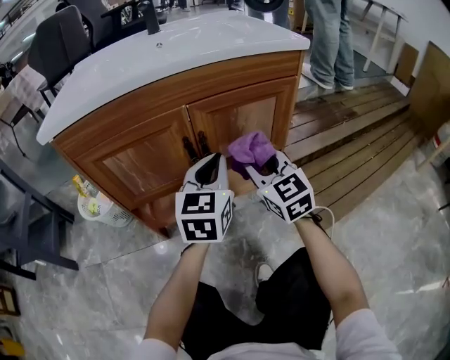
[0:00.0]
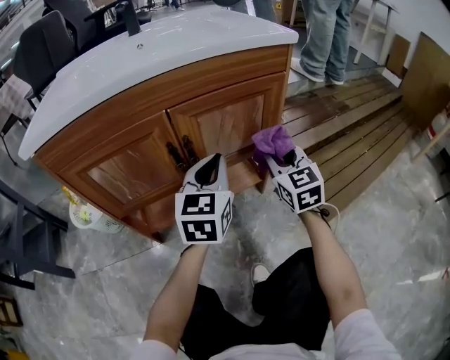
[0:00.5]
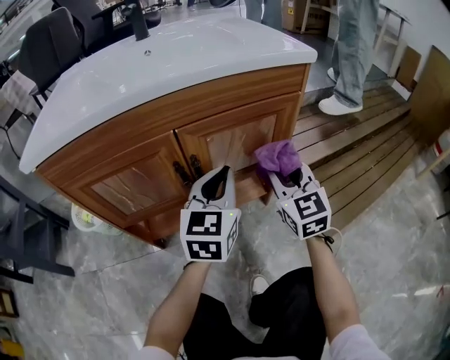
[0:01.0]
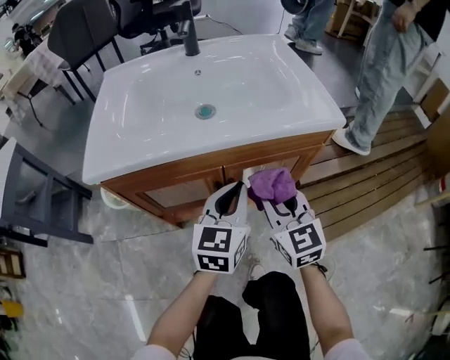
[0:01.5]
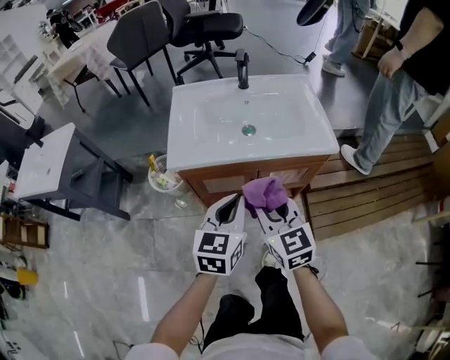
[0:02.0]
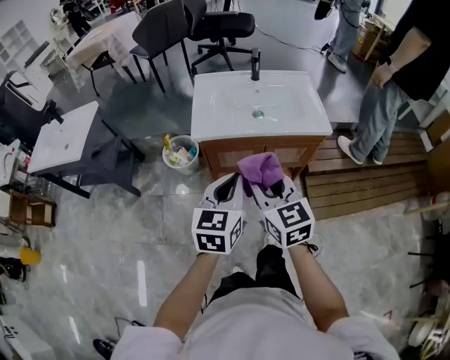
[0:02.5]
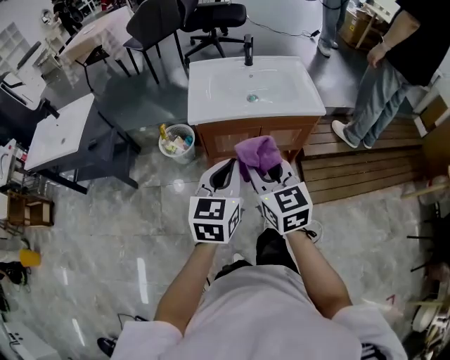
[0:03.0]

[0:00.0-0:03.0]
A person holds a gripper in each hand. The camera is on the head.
0.0 to 1.5 s: The two grippers go approximately 10 cm upward.
1.5 to 3.0 s: Both grippers move upward, backward and to the left, approximately 40 cm.

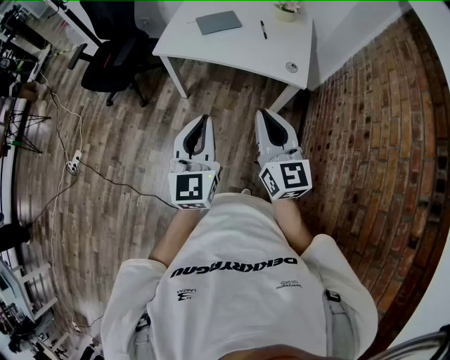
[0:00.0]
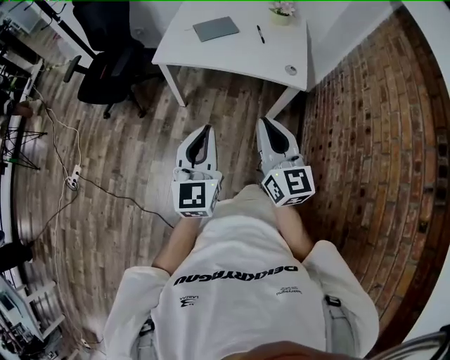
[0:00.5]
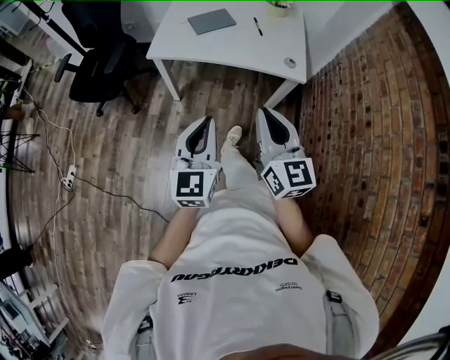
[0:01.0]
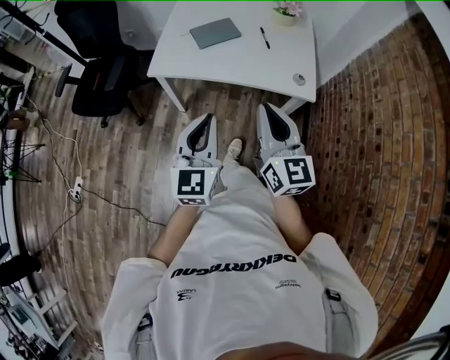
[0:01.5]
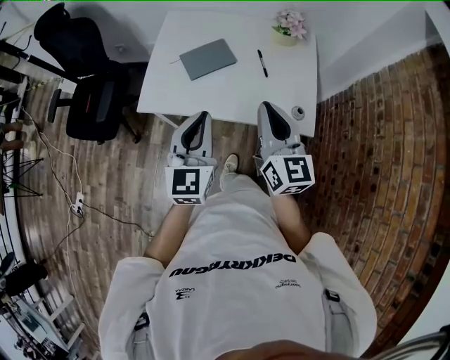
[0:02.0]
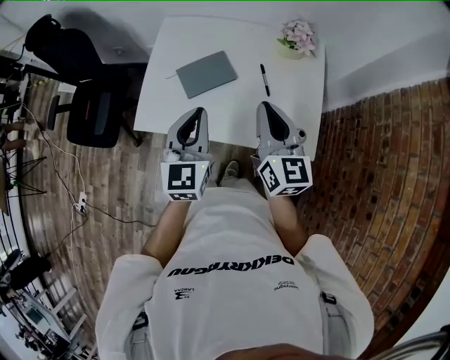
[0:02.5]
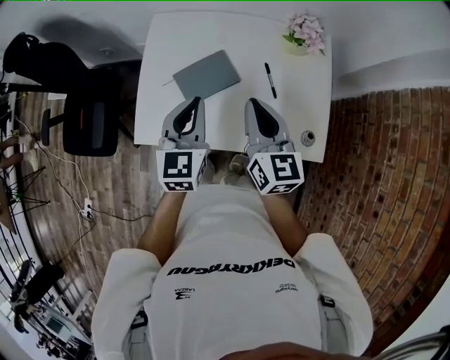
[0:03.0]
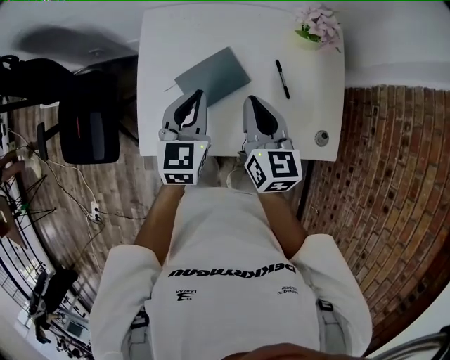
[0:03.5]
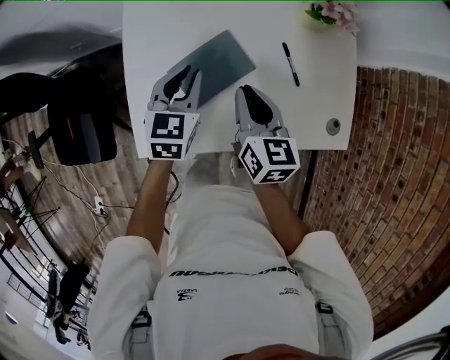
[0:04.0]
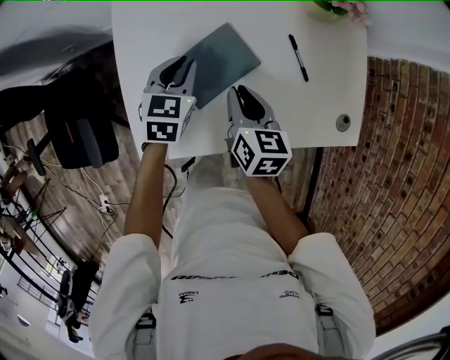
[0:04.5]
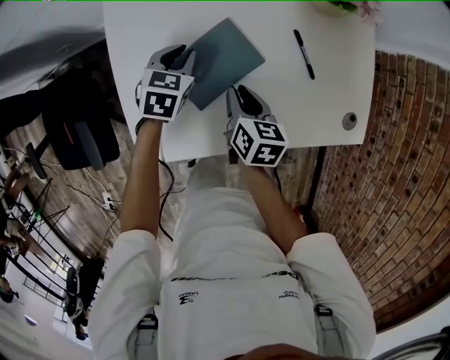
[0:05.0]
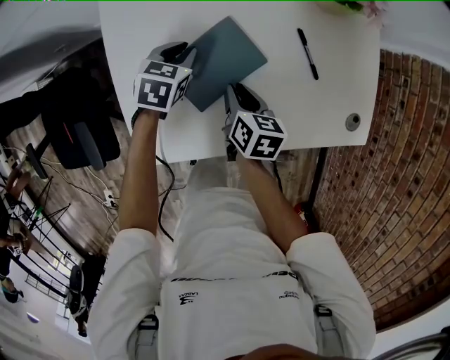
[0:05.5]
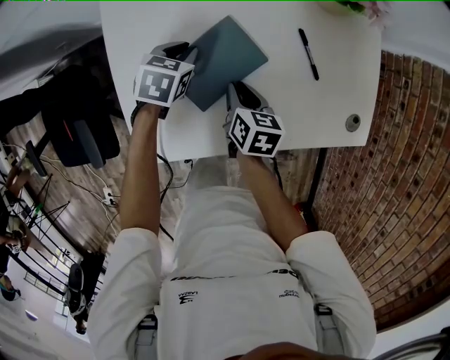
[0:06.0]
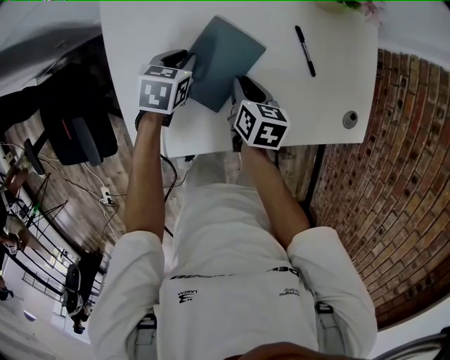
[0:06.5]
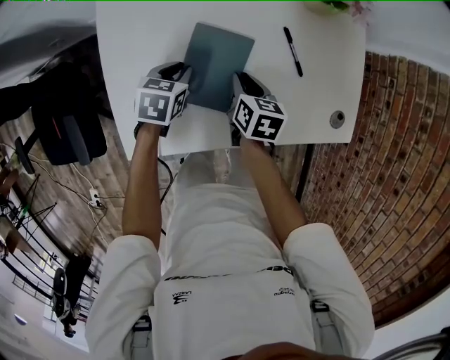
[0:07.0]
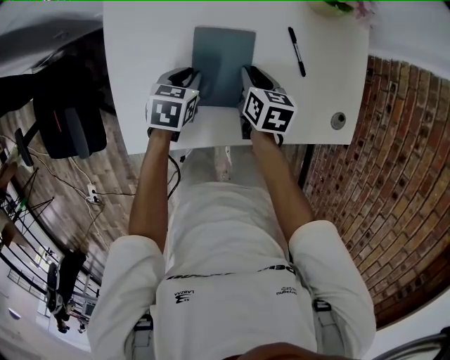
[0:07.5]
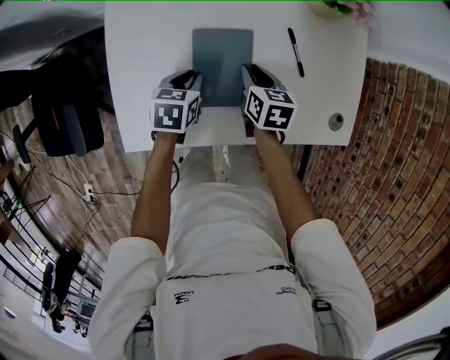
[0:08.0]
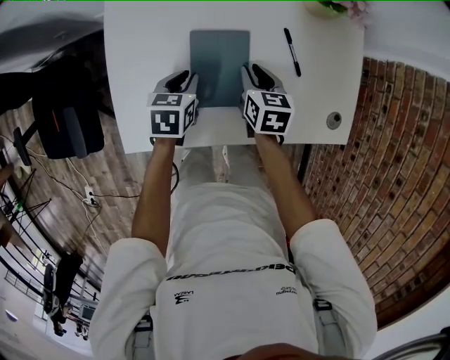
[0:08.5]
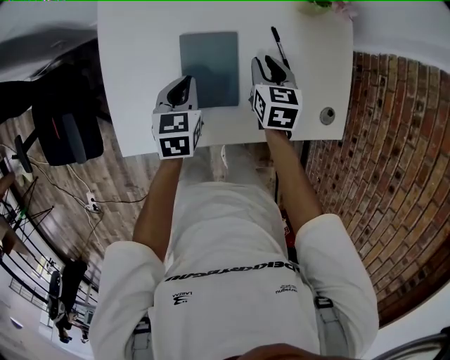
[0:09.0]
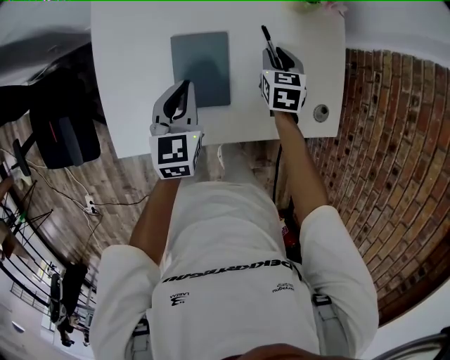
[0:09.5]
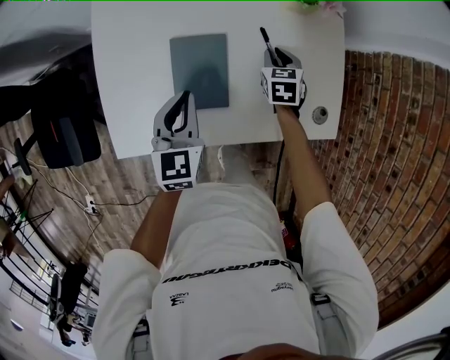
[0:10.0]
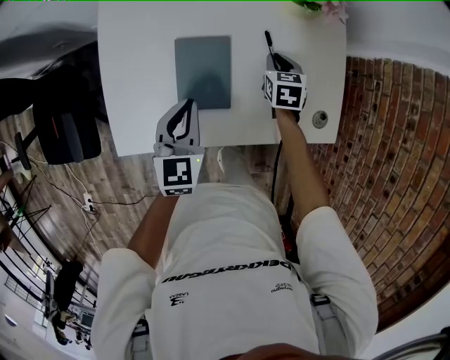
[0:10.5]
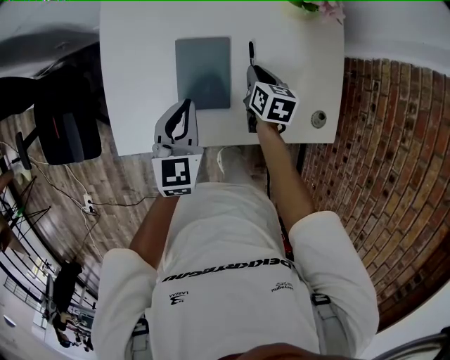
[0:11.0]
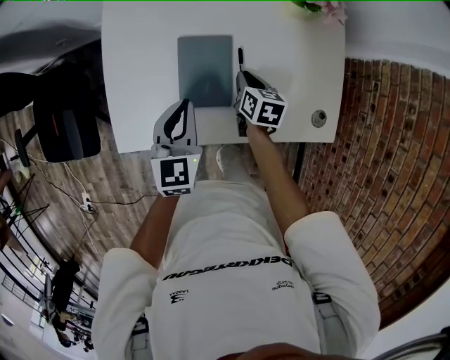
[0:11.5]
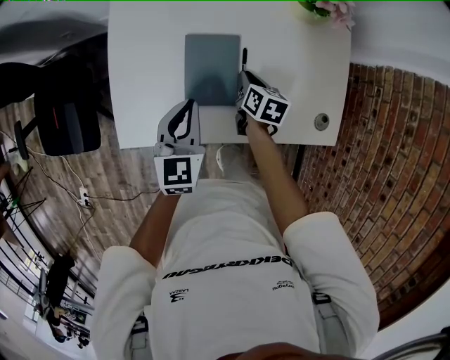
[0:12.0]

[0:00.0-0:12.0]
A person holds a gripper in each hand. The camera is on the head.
0.0 to 2.0 s: Both grippers travel together forward, some 35 cm.
2.0 to 4.0 s: The grippers both shift forward and downward by about 40 cm. The left gripper rotates roughly 30 degrees; the right gripper swivels about 30 degrees.
4.0 to 6.0 s: Both grippers move downward, some 15 cm. The left gripper changes its angle by roughly 30 degrees; the right gripper changes its angle by approximately 30 degrees.
6.0 to 8.0 s: The left gripper travels backward by approximately 10 cm. The right gripper travels to the right by approximately 5 cm.
8.0 to 10.0 s: The left gripper is displaced upward by about 15 cm, and changes its angle by roughly 30 degrees, while the right gripper heads to the right and forward, covering roughly 15 cm, and swivels about 30 degrees.
10.0 to 12.0 s: The right gripper is displaced to the left and backward by roughly 10 cm, and changes its angle by about 40 degrees.

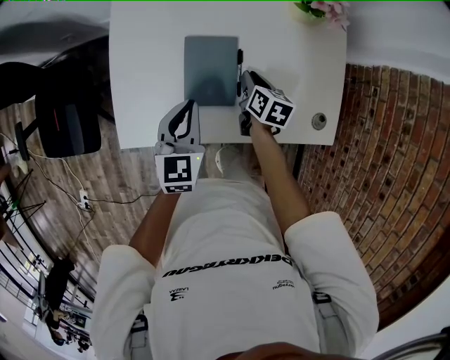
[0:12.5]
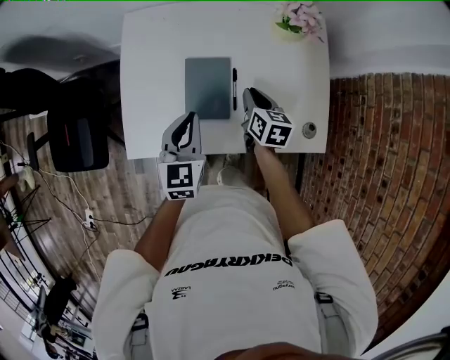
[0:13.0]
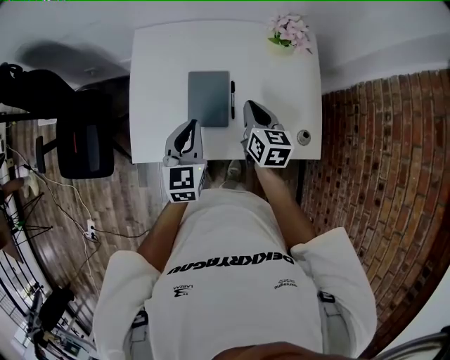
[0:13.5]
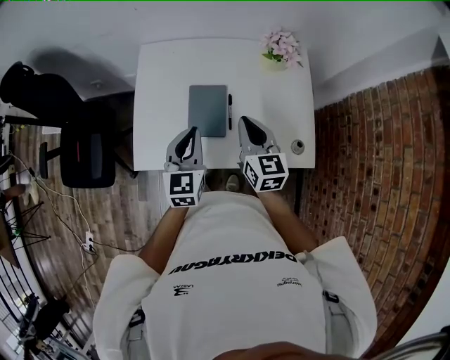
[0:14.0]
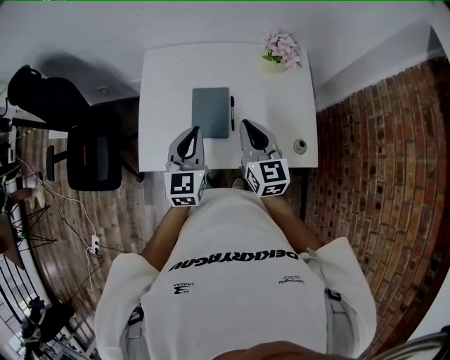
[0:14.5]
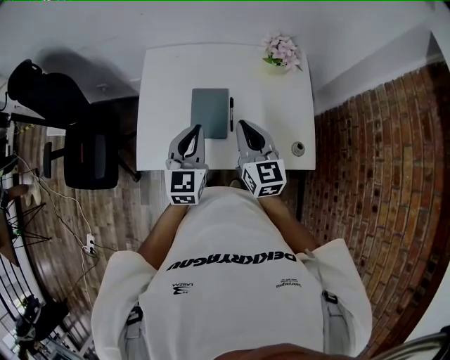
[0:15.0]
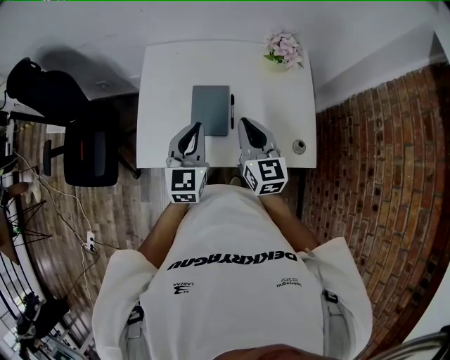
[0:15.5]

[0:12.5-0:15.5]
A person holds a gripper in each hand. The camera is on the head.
12.5 to 14.0 s: The left gripper moves upward and backward, approximately 15 cm. Meanwhile the right gripper moves upward, some 25 cm, and rotates about 40 degrees.
14.0 to 15.5 s: The grippers make only small movements.

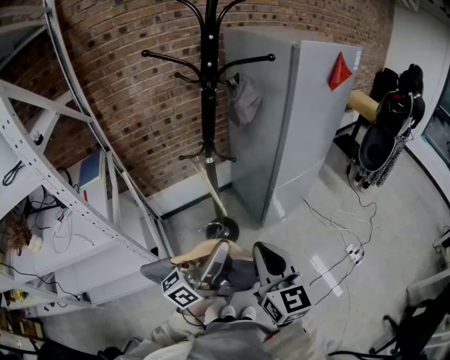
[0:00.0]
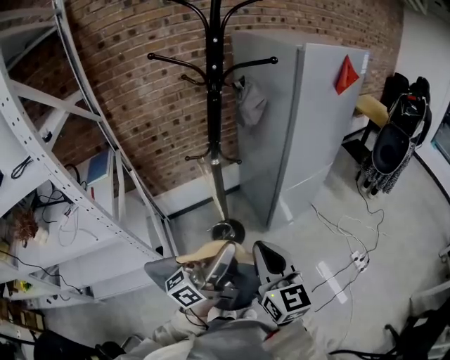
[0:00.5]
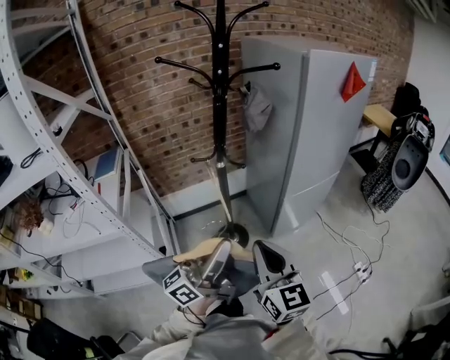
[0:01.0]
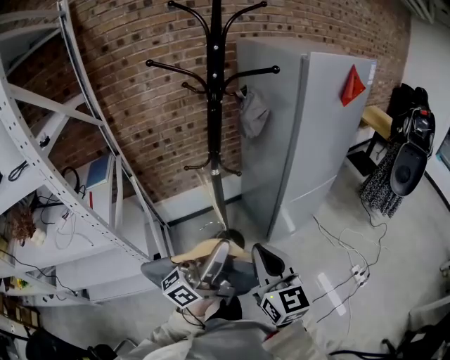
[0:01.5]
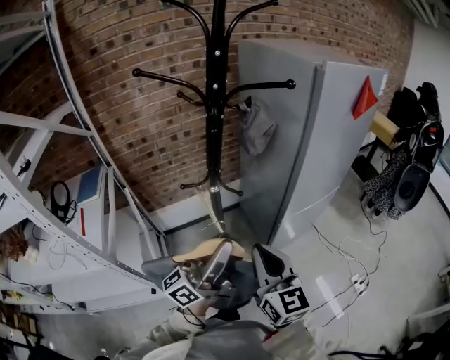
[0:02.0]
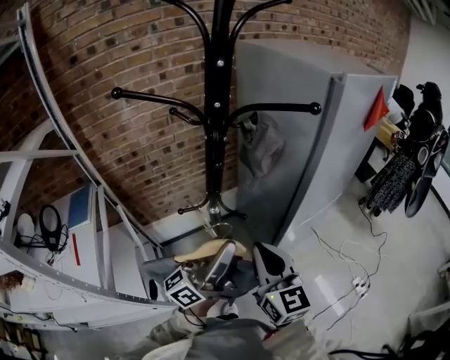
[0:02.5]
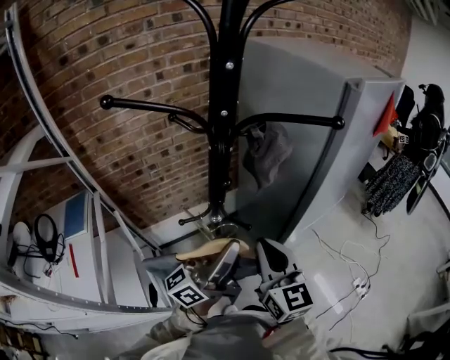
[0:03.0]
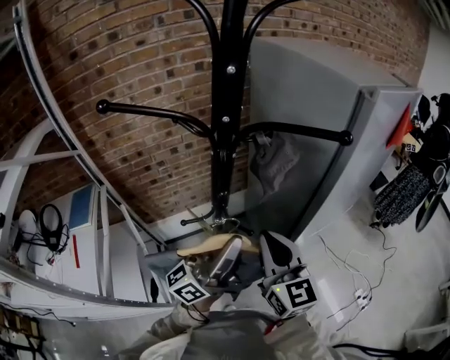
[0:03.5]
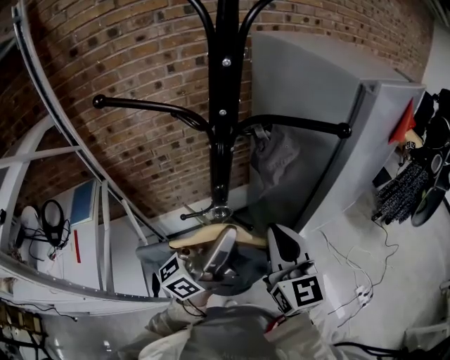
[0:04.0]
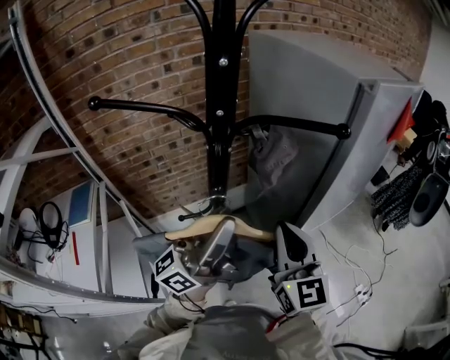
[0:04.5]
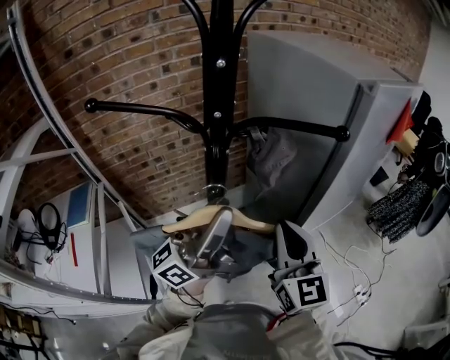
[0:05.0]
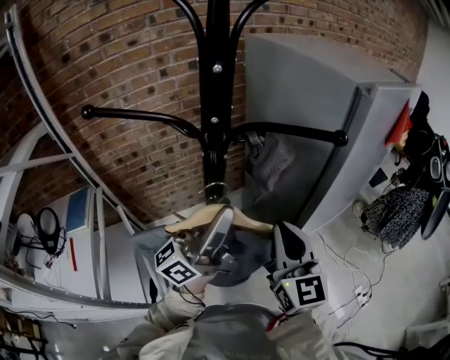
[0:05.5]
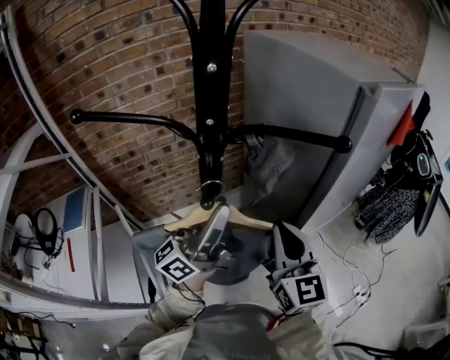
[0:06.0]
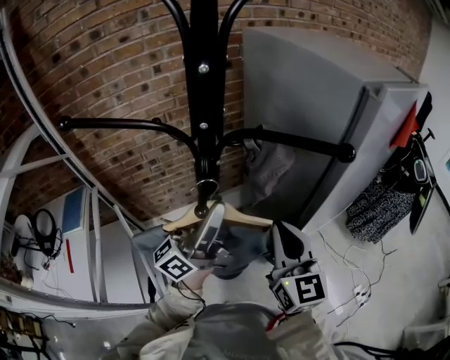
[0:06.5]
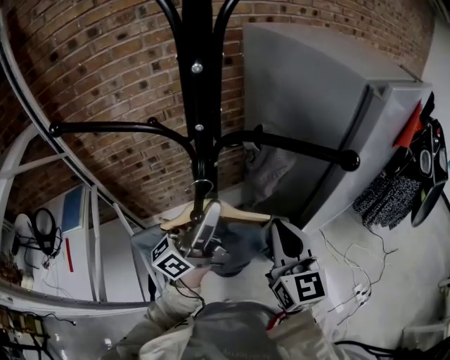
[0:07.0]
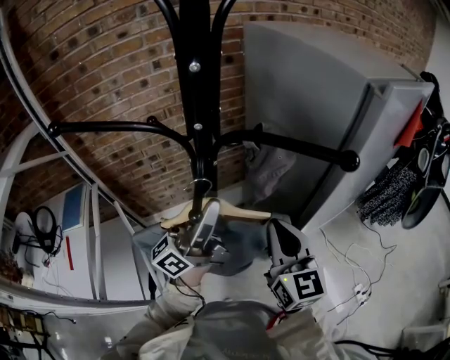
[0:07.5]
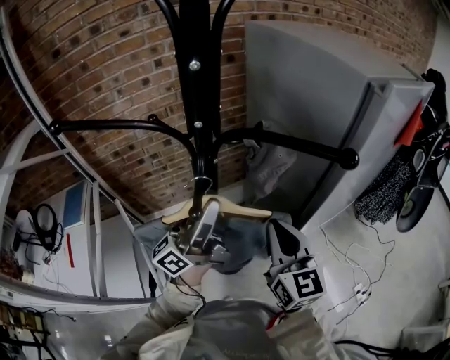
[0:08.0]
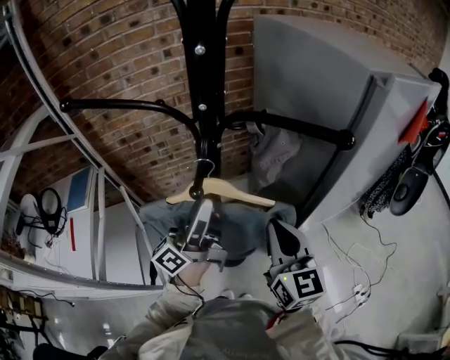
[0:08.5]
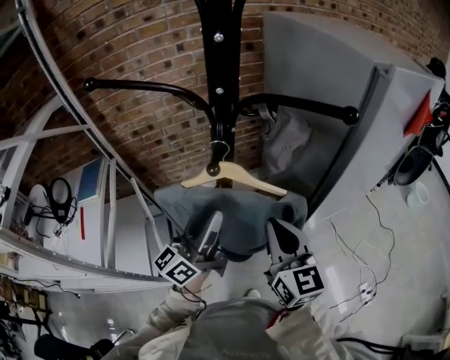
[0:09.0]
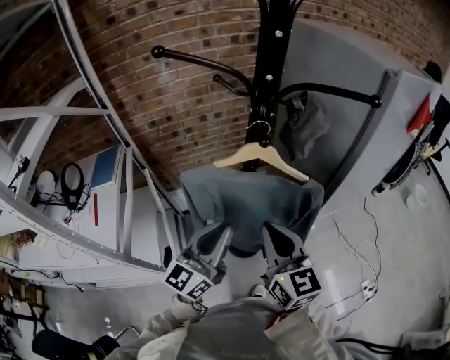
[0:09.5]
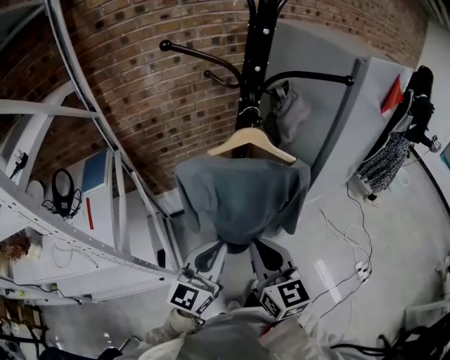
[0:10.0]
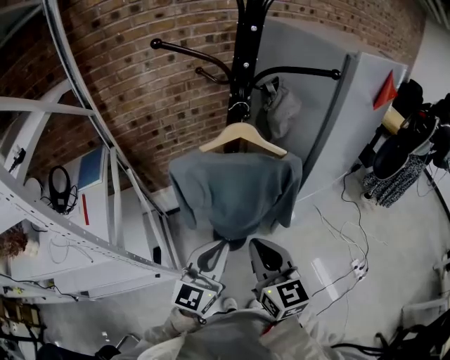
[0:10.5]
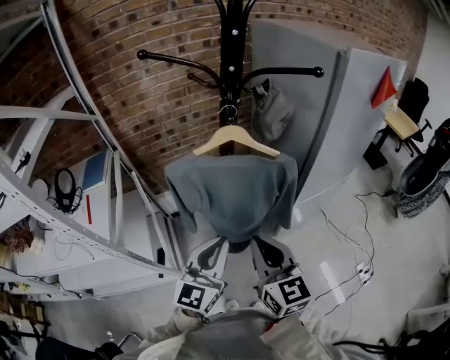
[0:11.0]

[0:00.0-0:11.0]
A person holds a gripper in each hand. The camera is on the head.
0.0 to 2.0 s: The grippers both shift forward by approximately 15 cm.
2.0 to 3.5 s: Both grippers move forward, about 20 cm.
3.5 to 5.5 s: The left gripper is displaced upward by some 5 cm, while the right gripper changes place by approximately 5 cm.
5.5 to 7.5 s: The right gripper moves some 5 cm, while the left gripper travels forward by approximately 5 cm.
7.5 to 9.0 s: The right gripper travels backward by roughly 5 cm. The left gripper shifts approximately 10 cm backward and downward, and changes its angle by approximately 20 degrees.
9.0 to 11.0 s: Both grippers move backward, some 20 cm. The left gripper turns by roughly 40 degrees, and closes up.
